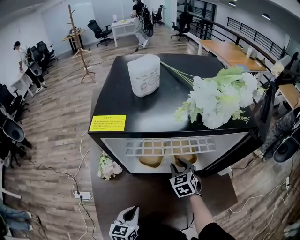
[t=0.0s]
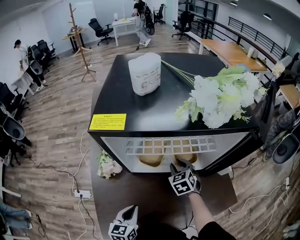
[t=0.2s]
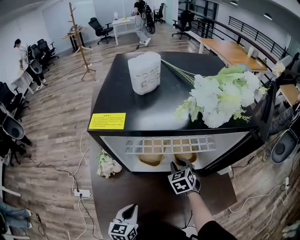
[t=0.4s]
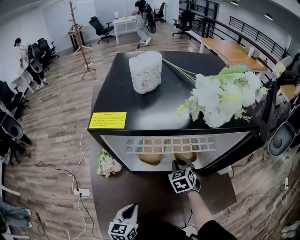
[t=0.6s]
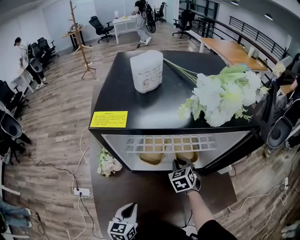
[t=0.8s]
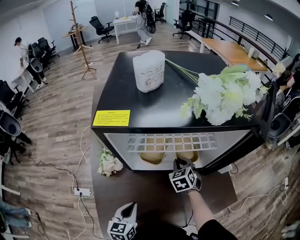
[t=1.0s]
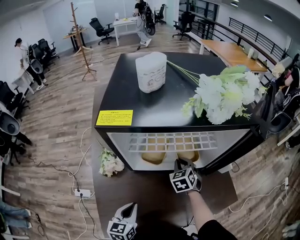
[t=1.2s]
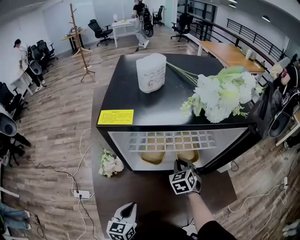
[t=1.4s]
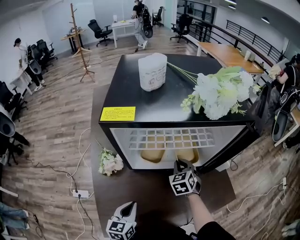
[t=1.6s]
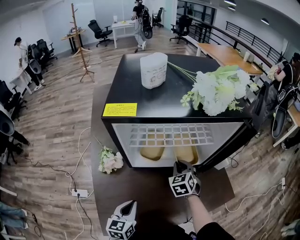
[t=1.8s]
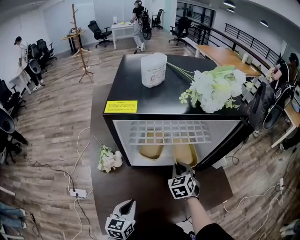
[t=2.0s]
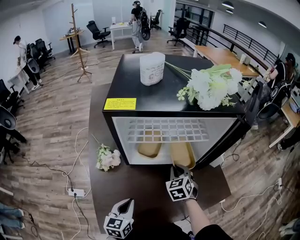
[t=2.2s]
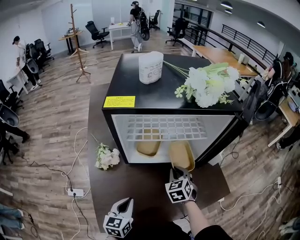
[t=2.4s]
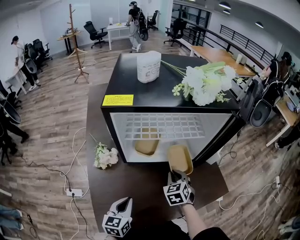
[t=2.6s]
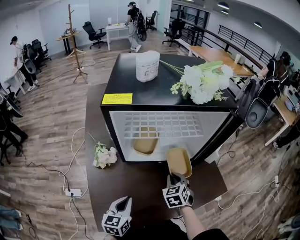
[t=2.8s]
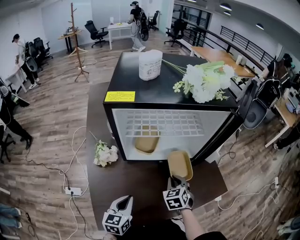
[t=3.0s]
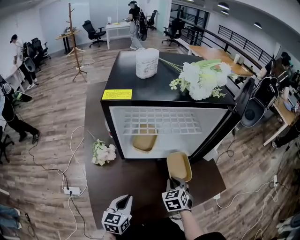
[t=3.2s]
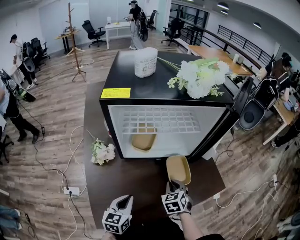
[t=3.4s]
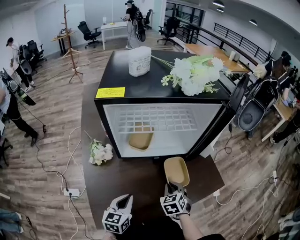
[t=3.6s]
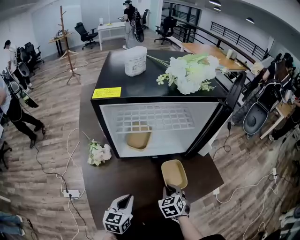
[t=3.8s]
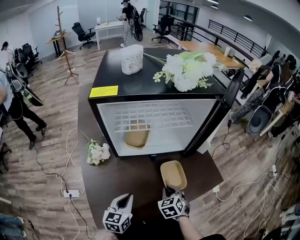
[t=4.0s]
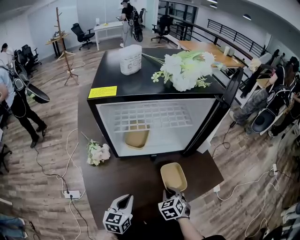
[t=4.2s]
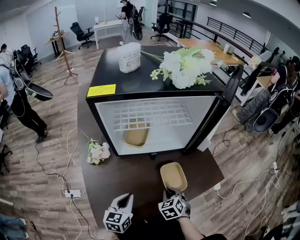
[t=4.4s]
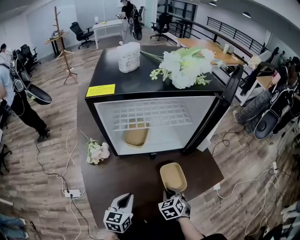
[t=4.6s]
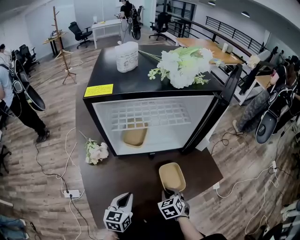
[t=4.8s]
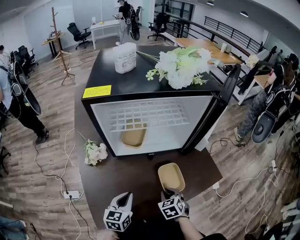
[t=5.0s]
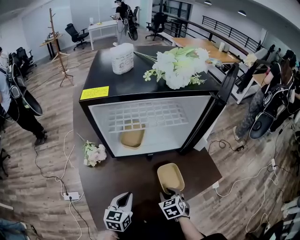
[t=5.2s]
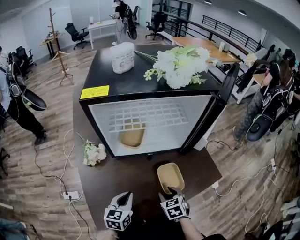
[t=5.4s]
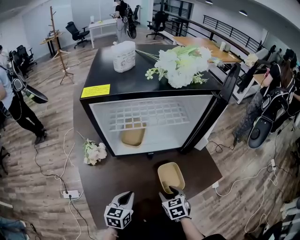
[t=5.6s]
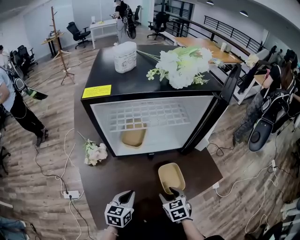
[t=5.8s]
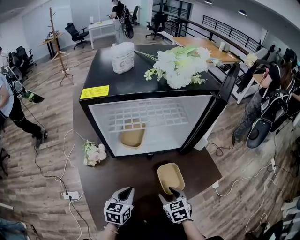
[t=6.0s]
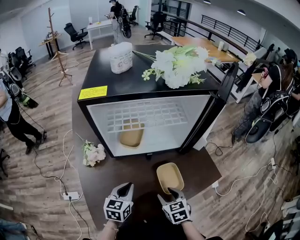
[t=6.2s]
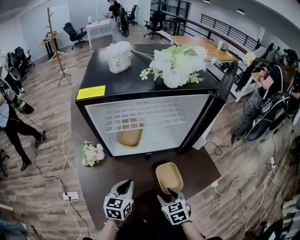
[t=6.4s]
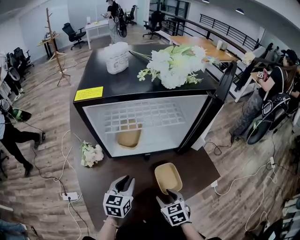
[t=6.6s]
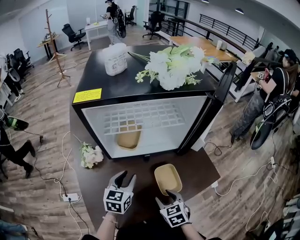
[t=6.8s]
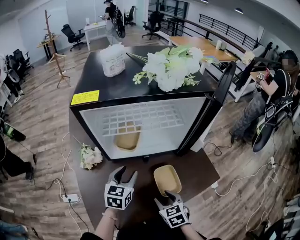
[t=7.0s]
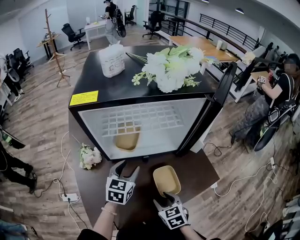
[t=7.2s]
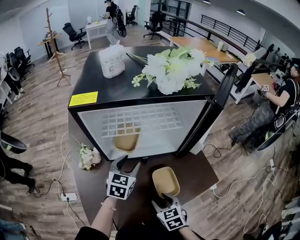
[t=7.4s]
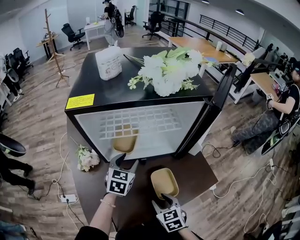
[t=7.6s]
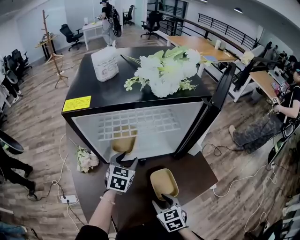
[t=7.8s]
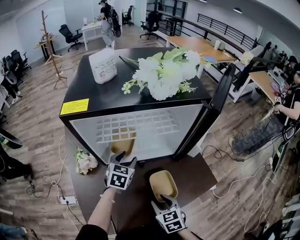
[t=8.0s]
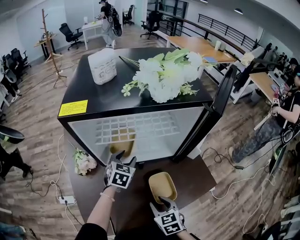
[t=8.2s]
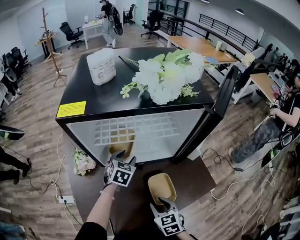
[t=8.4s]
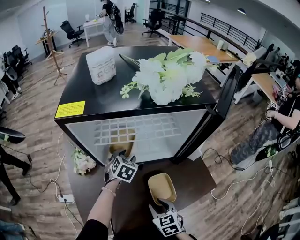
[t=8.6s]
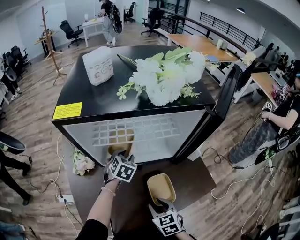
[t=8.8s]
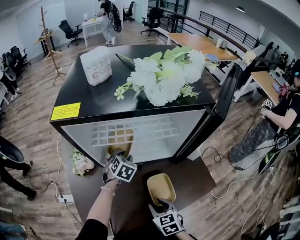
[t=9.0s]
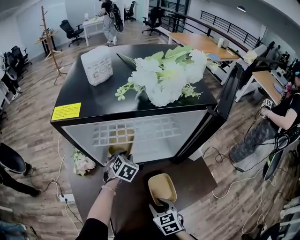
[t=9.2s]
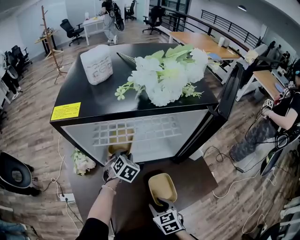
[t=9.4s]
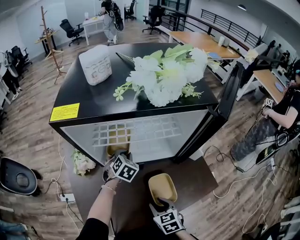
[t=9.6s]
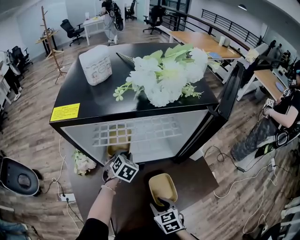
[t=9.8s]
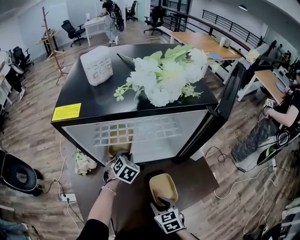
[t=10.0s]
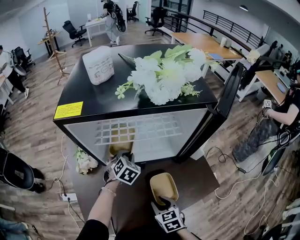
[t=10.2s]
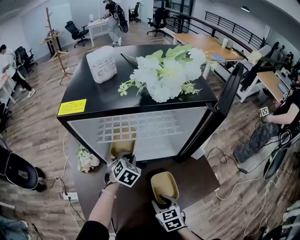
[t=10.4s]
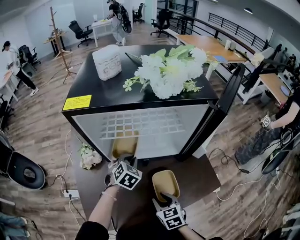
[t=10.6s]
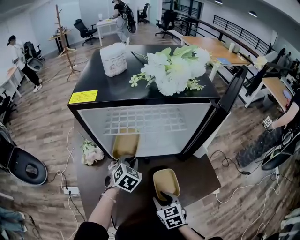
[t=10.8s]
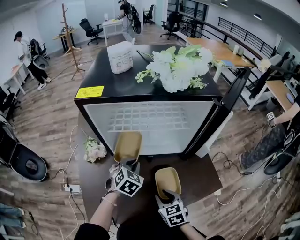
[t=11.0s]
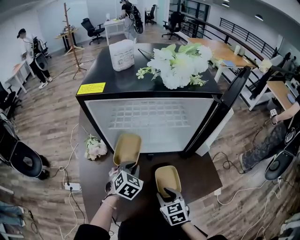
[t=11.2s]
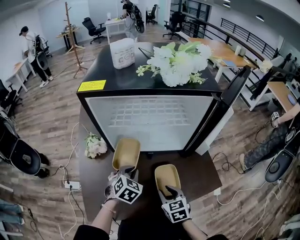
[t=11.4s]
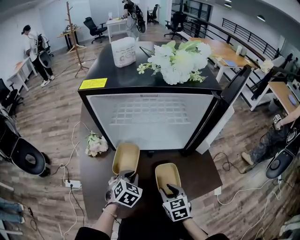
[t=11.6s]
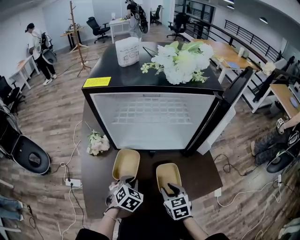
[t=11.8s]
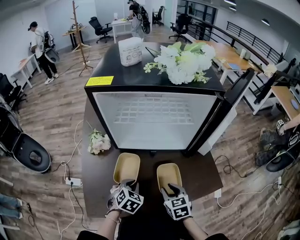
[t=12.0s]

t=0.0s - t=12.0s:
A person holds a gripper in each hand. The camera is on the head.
t=0.0s - t=1.6s: The right gripper closes its fingers.
t=1.6s - t=3.0s: The right gripper heads backward, covering approximately 15 cm.
t=3.0s - t=4.4s: The right gripper is displaced backward and downward by approximately 10 cm.
t=4.4s - t=6.0s: The right gripper opens.
t=6.0s - t=7.6s: The left gripper is displaced forward by about 15 cm, and opens its fingers.
t=7.6s - t=9.0s: The left gripper moves downward and forward, approximately 10 cm, and rotates roughly 20 degrees.
t=9.0s - t=10.4s: The left gripper closes.
t=10.4s - t=12.0s: The left gripper moves backward, about 20 cm.

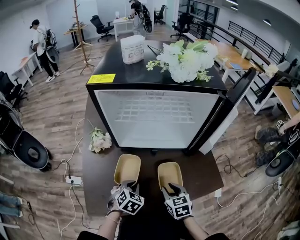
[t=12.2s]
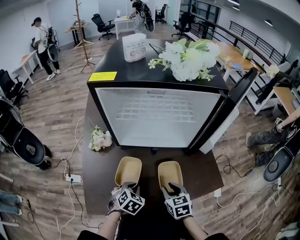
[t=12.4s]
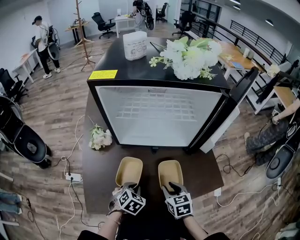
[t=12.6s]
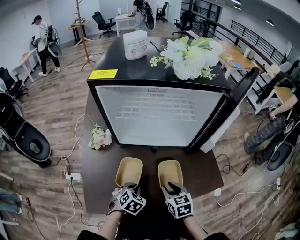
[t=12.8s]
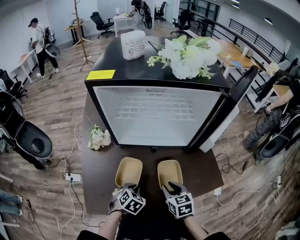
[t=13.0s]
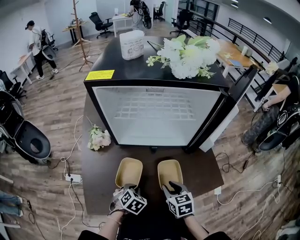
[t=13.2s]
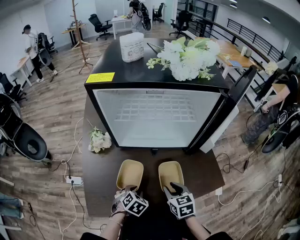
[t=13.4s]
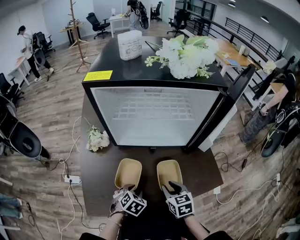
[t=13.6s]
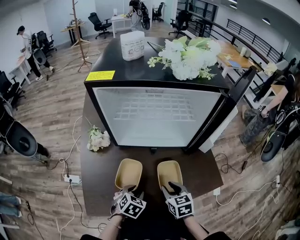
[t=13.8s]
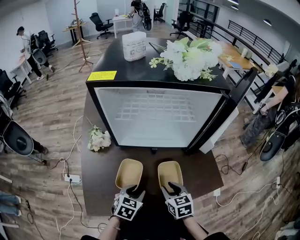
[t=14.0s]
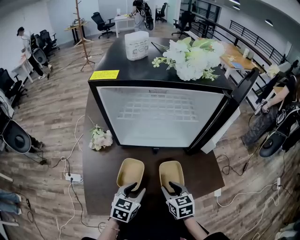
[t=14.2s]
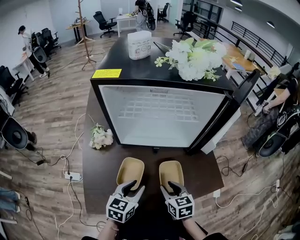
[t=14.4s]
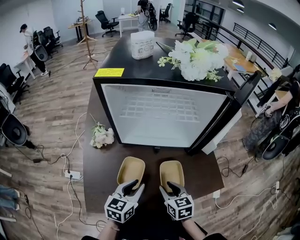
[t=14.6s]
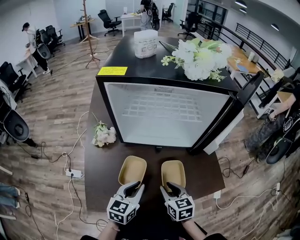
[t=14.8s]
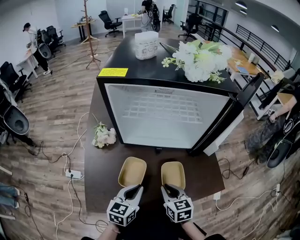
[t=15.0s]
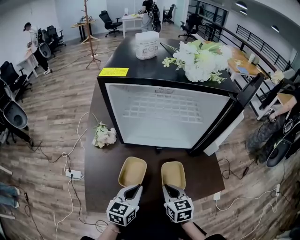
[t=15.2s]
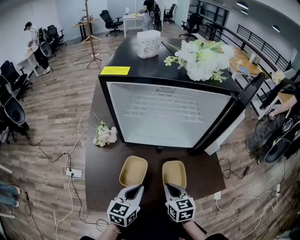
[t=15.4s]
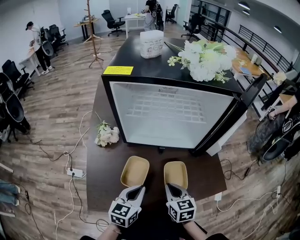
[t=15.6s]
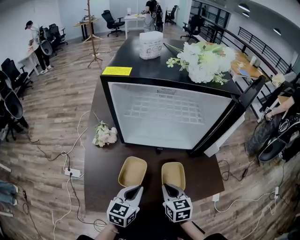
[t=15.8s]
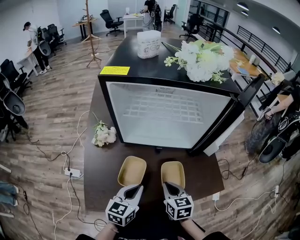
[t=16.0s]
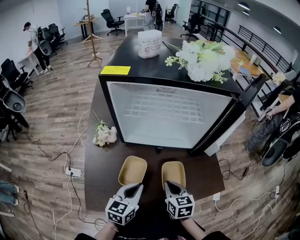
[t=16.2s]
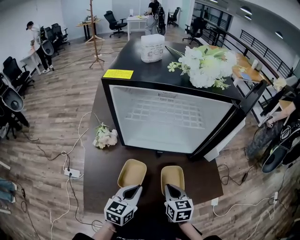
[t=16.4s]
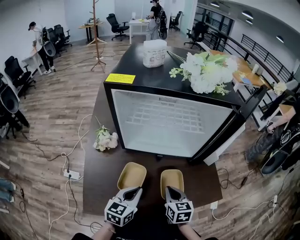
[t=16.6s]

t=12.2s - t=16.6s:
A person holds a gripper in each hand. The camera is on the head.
t=12.2s - t=13.6s: The left gripper moves about 5 cm, and opens up.
t=13.6s - t=15.2s: The left gripper goes some 10 cm upward, angles its fingers upward, by approximately 40 degrees, and closes; the right gripper closes up.
t=15.2s - t=16.6s: The grippers stay close to where they were, moving slightly.

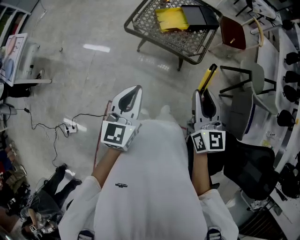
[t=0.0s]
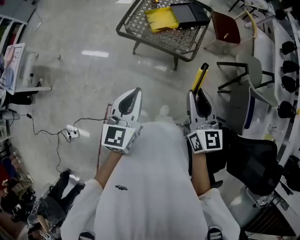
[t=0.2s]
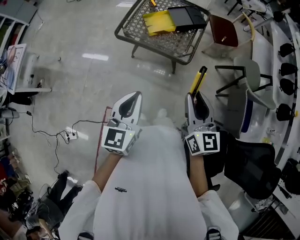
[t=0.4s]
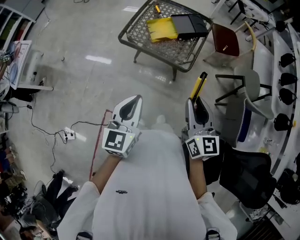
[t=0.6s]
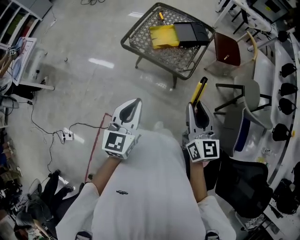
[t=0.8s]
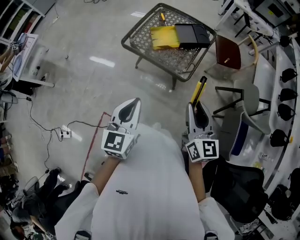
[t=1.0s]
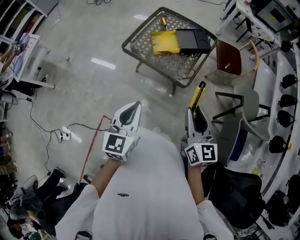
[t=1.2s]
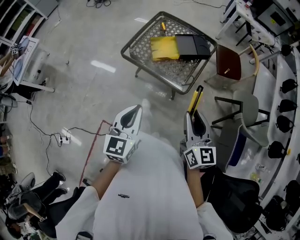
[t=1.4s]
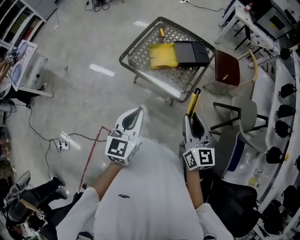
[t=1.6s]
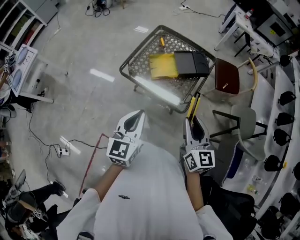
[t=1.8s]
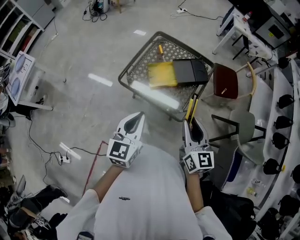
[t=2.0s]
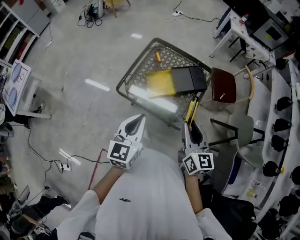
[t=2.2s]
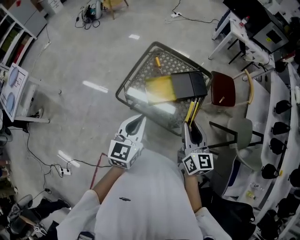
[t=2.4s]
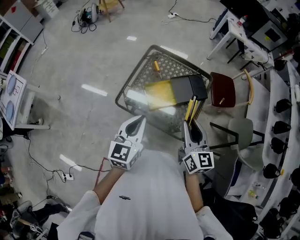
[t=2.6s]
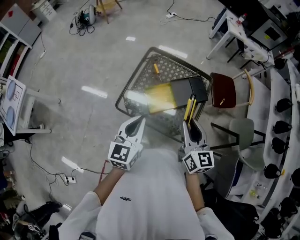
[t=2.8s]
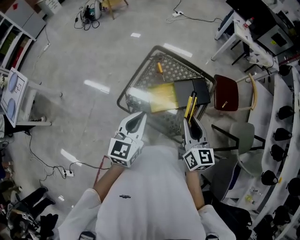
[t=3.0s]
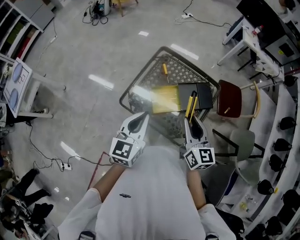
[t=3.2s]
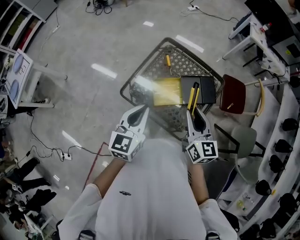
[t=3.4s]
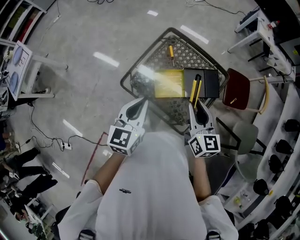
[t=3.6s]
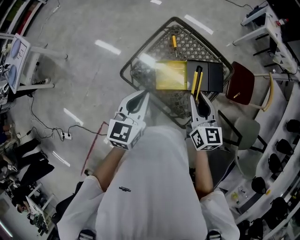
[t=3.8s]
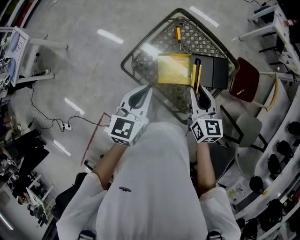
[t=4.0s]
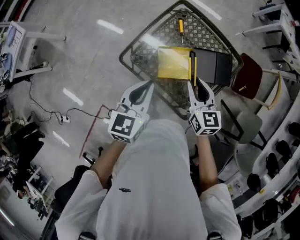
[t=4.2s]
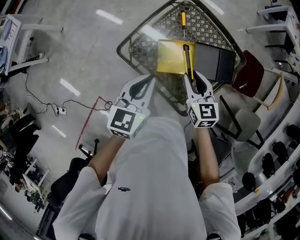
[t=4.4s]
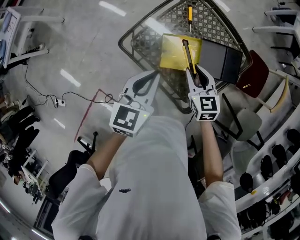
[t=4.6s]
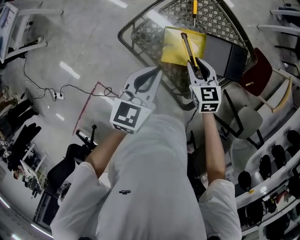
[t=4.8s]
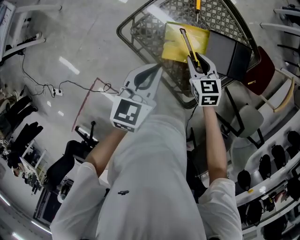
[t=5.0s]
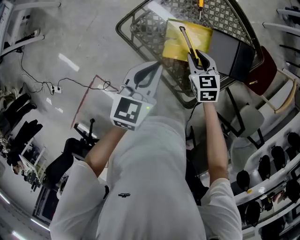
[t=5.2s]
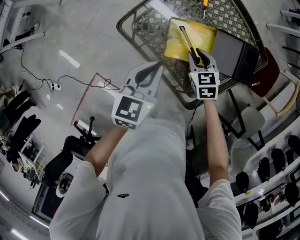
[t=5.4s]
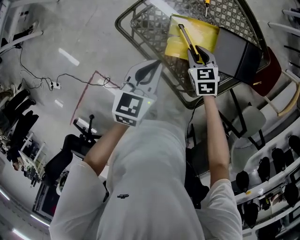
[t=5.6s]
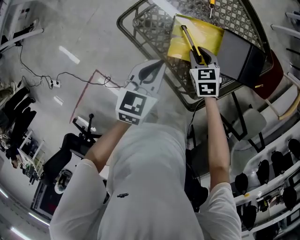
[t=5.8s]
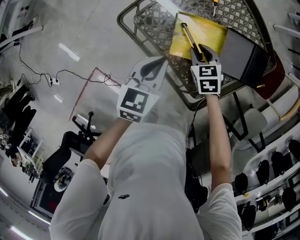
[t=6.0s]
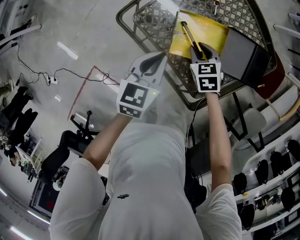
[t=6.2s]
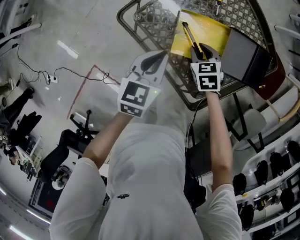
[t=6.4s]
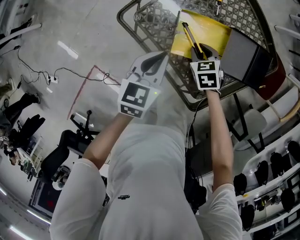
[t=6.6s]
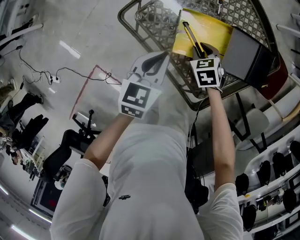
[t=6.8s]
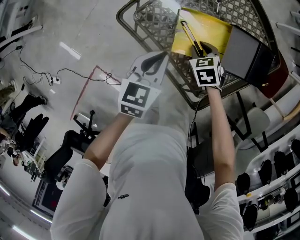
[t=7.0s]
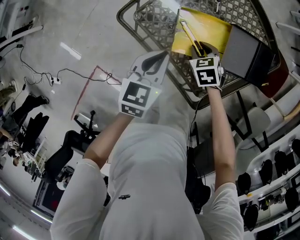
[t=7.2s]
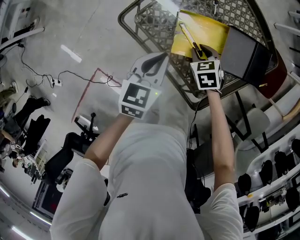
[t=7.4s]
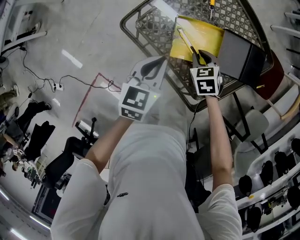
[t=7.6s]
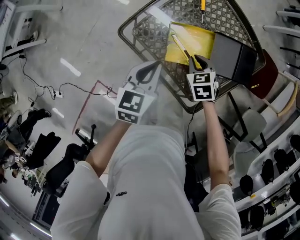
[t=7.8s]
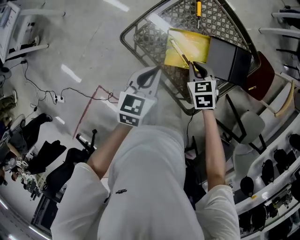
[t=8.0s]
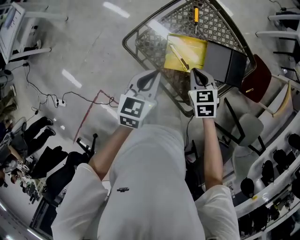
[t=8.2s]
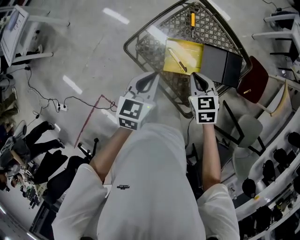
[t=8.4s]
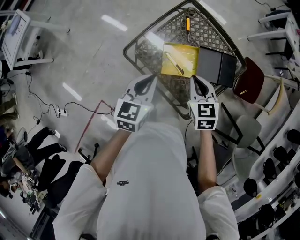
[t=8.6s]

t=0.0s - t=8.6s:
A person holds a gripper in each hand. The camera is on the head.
t=0.0s - t=1.4s: The right gripper goes some 10 cm to the right and forward. The left gripper travels to the right by about 10 cm.
t=1.4s - t=2.8s: The grippers both shift forward by approximately 30 cm.
t=2.8s - t=4.4s: The right gripper shifts approximately 25 cm downward and forward, and turns by roughly 30 degrees, while the left gripper is displaced downward and forward by about 15 cm.
t=4.4s - t=5.8s: Both grippers move downward, about 20 cm. The right gripper swivels approximately 30 degrees.
t=5.8s - t=7.2s: The grippers make only small movements.
t=7.2s - t=8.6s: The left gripper is displaced upward by some 20 cm, while the right gripper shifts roughly 30 cm upward, turns by some 30 degrees, and closes.
